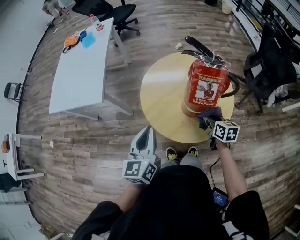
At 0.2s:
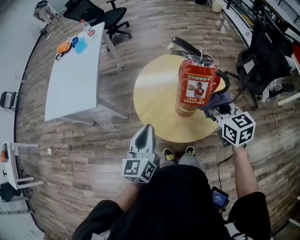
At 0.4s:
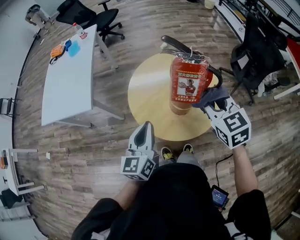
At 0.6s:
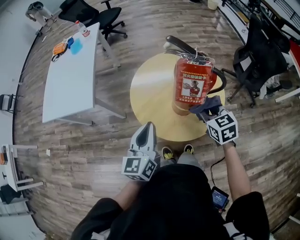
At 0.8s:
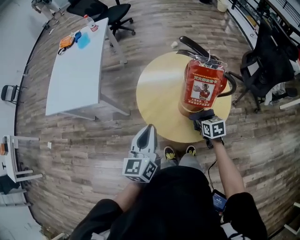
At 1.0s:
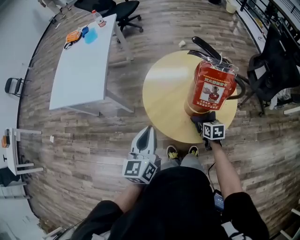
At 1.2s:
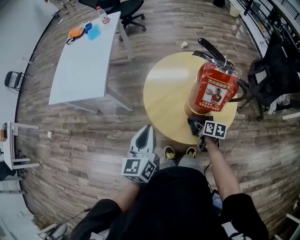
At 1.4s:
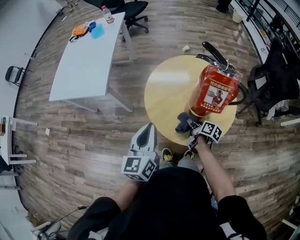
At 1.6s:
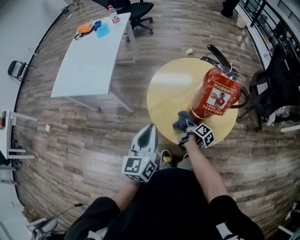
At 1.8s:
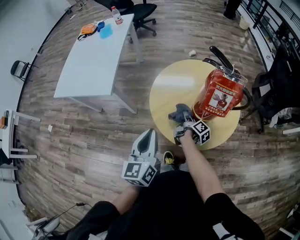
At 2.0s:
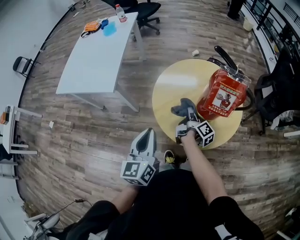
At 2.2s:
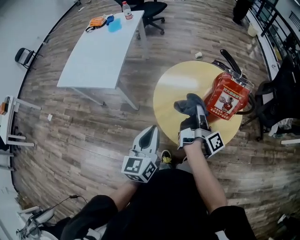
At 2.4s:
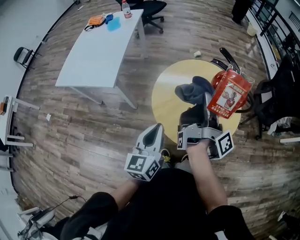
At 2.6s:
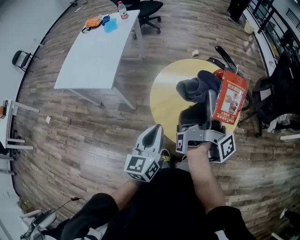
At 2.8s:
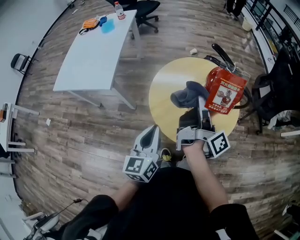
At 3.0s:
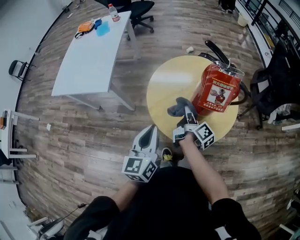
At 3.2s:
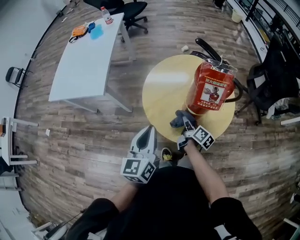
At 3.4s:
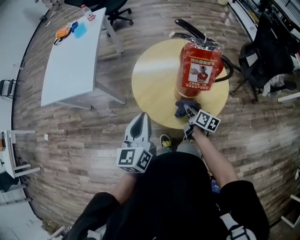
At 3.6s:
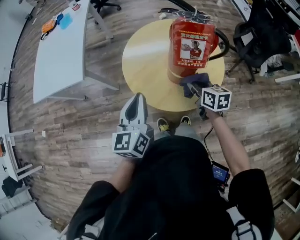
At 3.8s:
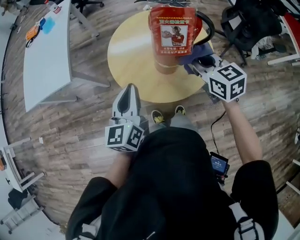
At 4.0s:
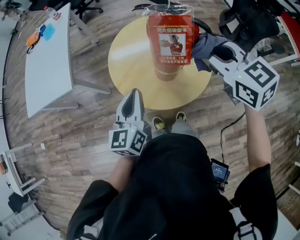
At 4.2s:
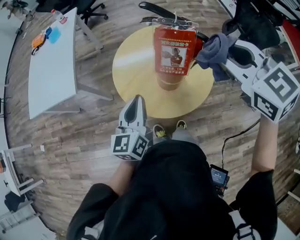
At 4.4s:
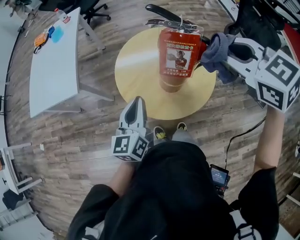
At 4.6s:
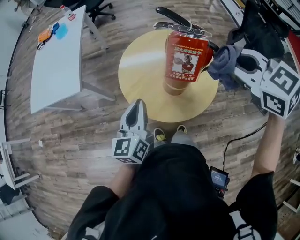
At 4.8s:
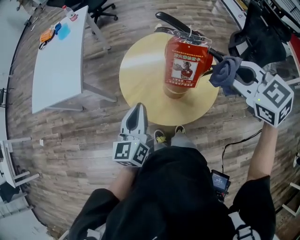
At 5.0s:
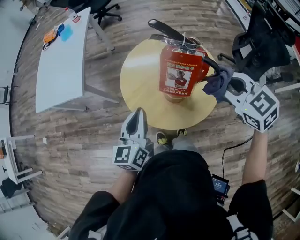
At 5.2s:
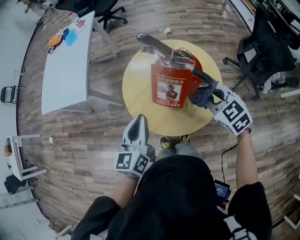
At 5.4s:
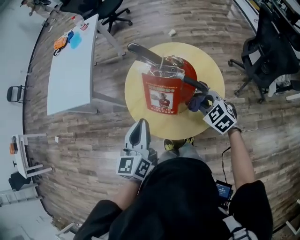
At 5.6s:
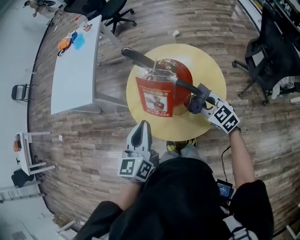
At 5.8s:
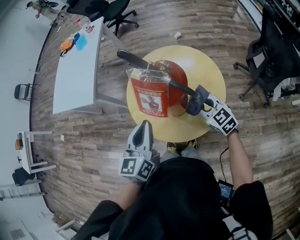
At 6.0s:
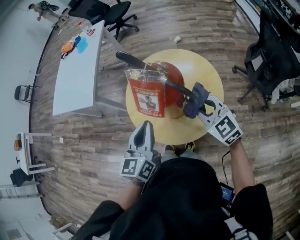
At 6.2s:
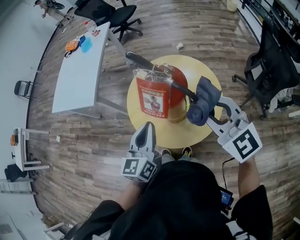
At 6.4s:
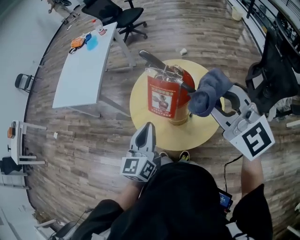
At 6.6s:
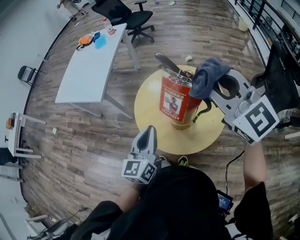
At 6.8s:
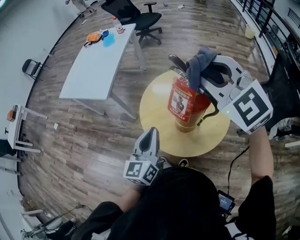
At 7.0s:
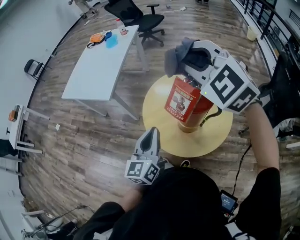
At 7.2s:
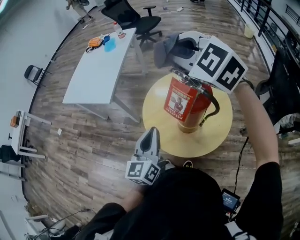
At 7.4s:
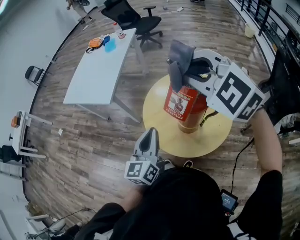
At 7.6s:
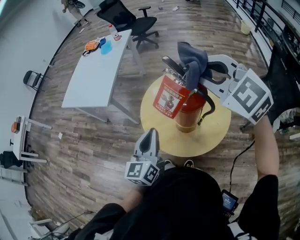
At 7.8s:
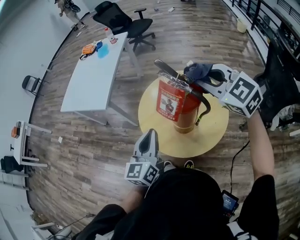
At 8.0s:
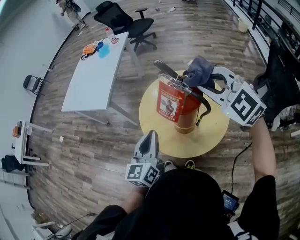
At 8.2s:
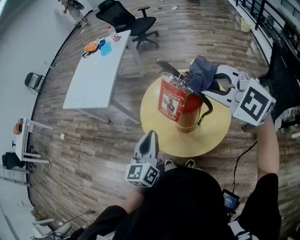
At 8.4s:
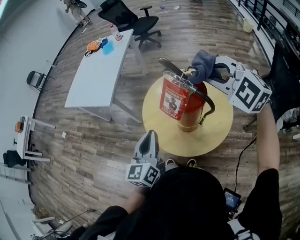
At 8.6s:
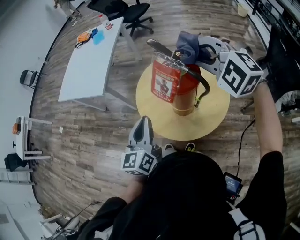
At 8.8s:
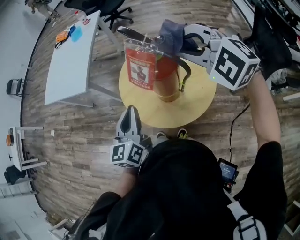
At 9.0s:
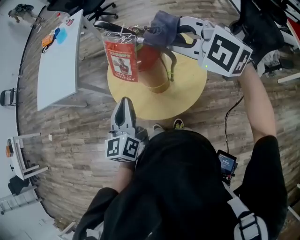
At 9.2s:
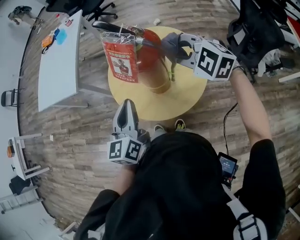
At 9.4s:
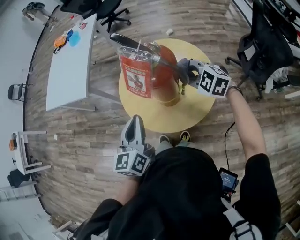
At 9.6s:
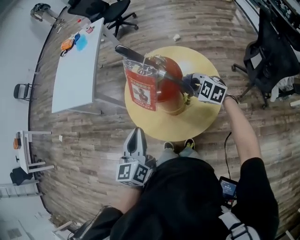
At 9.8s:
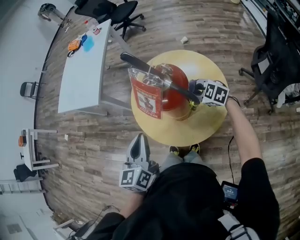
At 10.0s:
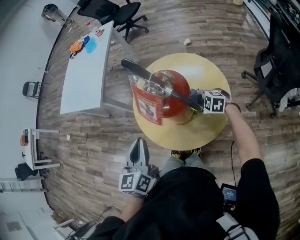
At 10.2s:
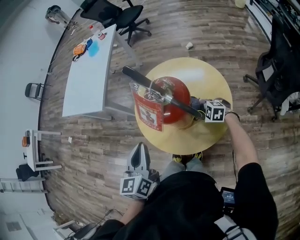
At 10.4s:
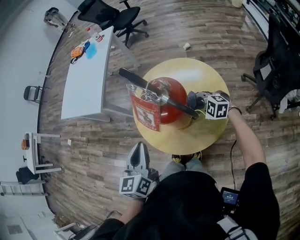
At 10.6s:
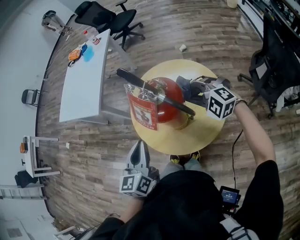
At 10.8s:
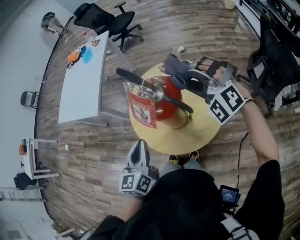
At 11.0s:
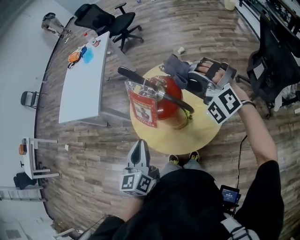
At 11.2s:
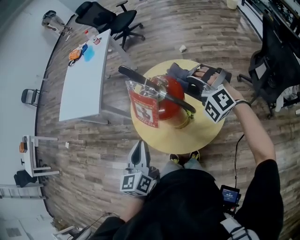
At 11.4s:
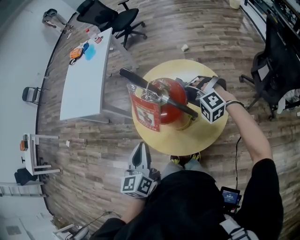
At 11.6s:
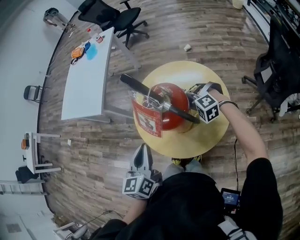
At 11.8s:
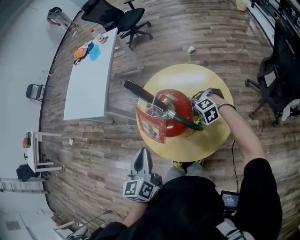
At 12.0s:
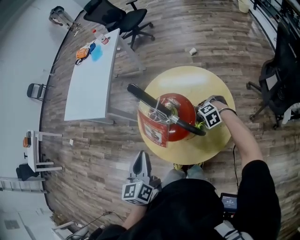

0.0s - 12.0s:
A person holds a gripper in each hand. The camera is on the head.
0.0s - 1.6s: The right gripper travels to the left by approximately 10 cm, reaches about 20 cm upward, then returns, and rotates around the line of its fingers by some 50 degrees, clockwise from behind.
1.6s - 3.0s: The right gripper shifts about 15 cm upward, and rotates some 20 degrees.
3.0s - 4.4s: The right gripper heads upward, covering some 30 cm, and twists about 90 degrees counterclockwise, seen from behind, while the left gripper moves to the right, about 5 cm.
4.4s - 6.0s: The left gripper travels to the right by some 10 cm; the right gripper travels downward by some 20 cm.
6.0s - 7.6s: The left gripper ends up approximately 5 cm from where it was. Meanwhile the right gripper shifts about 25 cm upward, and rotates approximately 20 degrees.
7.6s - 9.0s: The right gripper travels downward by about 10 cm.
9.0s - 10.4s: The right gripper moves downward, about 30 cm, and rotates roughly 20 degrees.
10.4s - 12.0s: The right gripper goes upward and returns, approximately 25 cm each way, and rotates some 30 degrees.

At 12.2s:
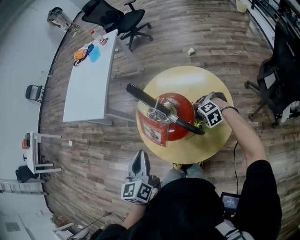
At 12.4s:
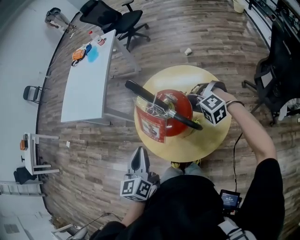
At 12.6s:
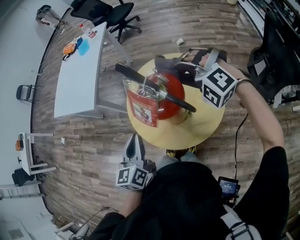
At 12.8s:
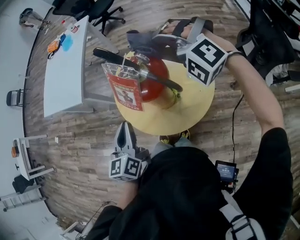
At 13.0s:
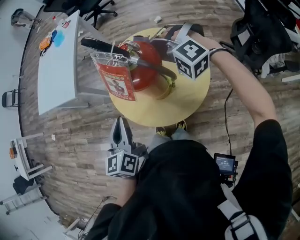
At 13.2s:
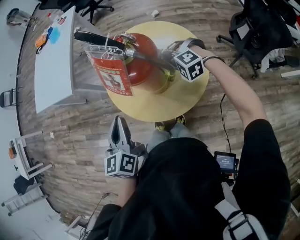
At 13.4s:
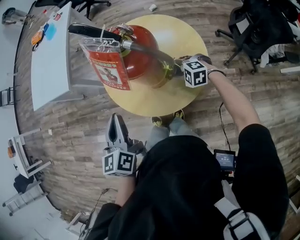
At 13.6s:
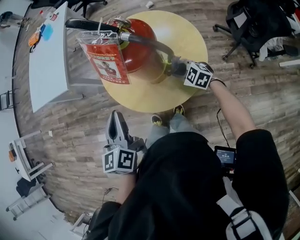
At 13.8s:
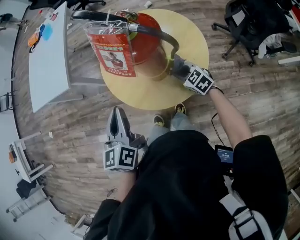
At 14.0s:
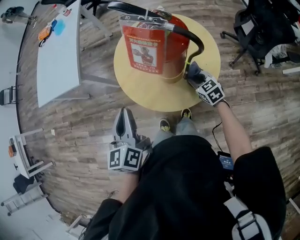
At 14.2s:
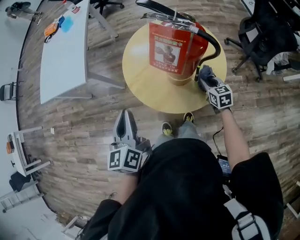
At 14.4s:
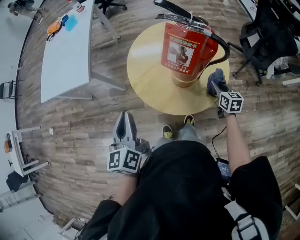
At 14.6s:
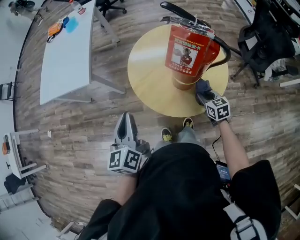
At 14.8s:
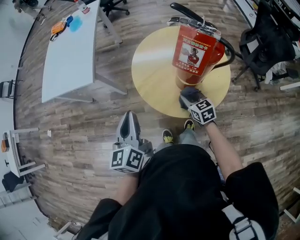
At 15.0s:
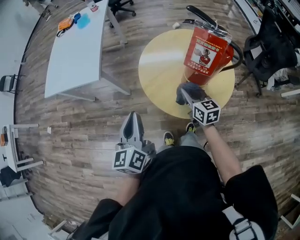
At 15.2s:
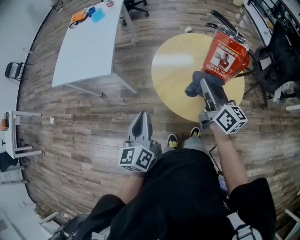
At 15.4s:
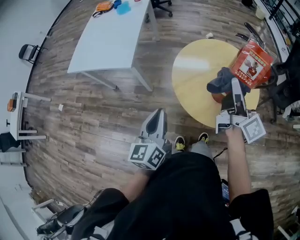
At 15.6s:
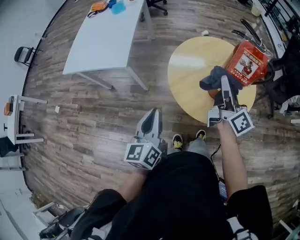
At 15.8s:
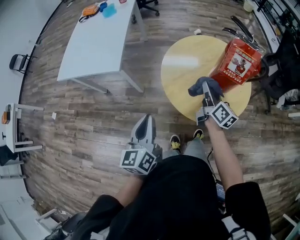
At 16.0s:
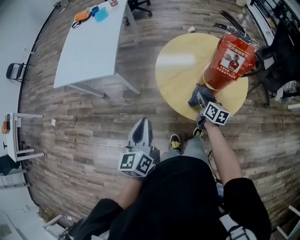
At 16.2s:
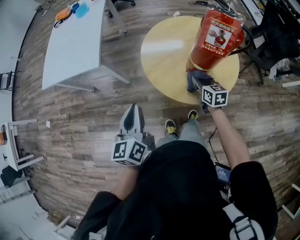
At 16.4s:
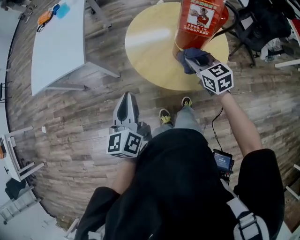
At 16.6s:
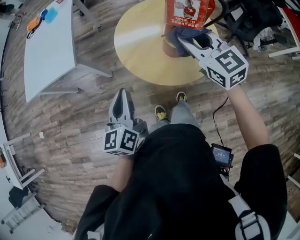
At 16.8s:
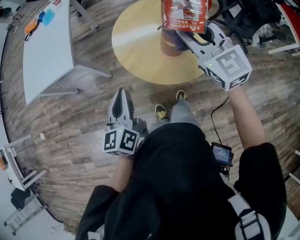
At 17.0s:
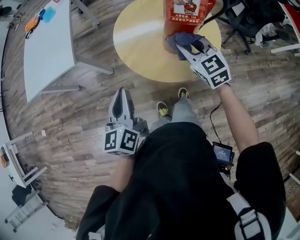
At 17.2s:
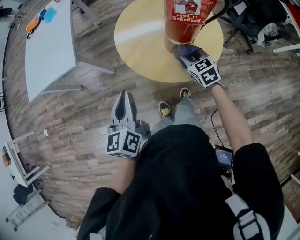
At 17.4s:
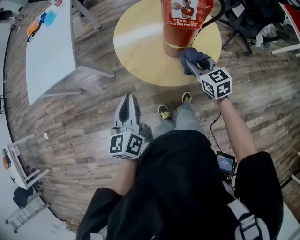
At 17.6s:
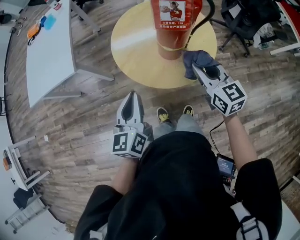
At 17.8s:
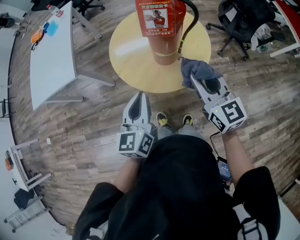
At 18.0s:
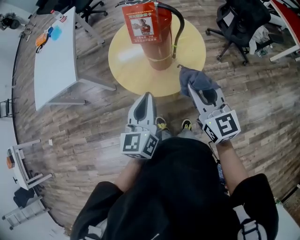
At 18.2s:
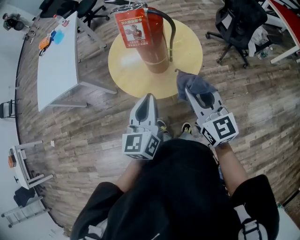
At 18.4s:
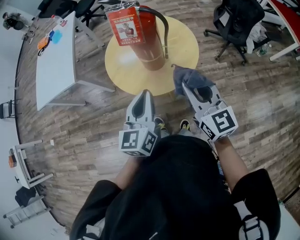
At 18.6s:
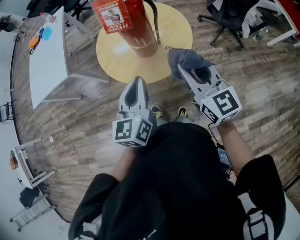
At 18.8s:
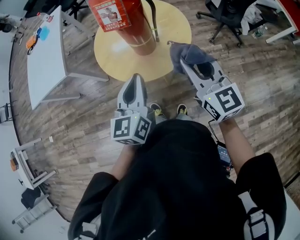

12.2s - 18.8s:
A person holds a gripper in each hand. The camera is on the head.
12.2s - 13.8s: The right gripper goes roughly 10 cm backward, reaches some 30 cm upward, then returns, and rotates around the line of its fingers by roughly 60 degrees, clockwise from behind.
13.8s - 15.4s: The right gripper goes approximately 35 cm upward and to the left, and tips its fingers upward by about 50 degrees, while the left gripper goes about 20 cm to the left.
15.4s - 17.2s: The left gripper changes place by approximately 5 cm. Meanwhile the right gripper goes up and down, roughly 30 cm each way, reversing 2 times, and angles its fingers downward, by roughly 50 degrees.
17.2s - 18.8s: The left gripper goes some 20 cm to the right; the right gripper heads upward, backward and to the right, covering roughly 30 cm, and points its fingers approximately 30 degrees further upward.

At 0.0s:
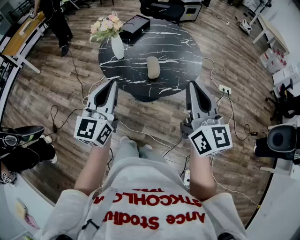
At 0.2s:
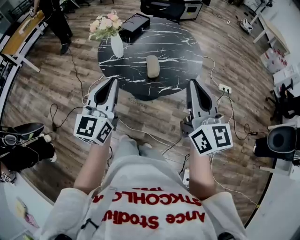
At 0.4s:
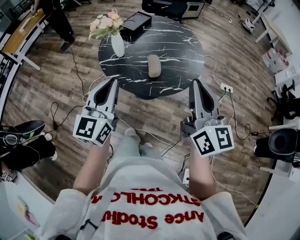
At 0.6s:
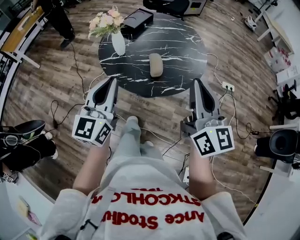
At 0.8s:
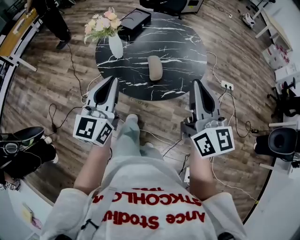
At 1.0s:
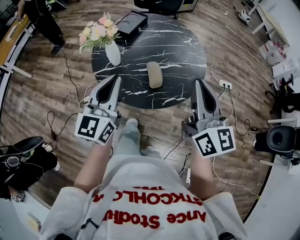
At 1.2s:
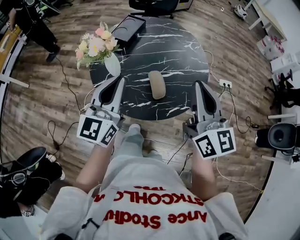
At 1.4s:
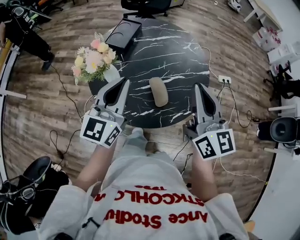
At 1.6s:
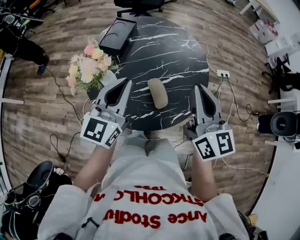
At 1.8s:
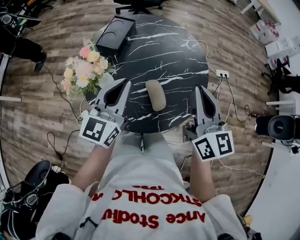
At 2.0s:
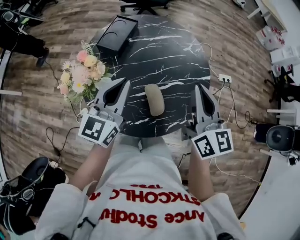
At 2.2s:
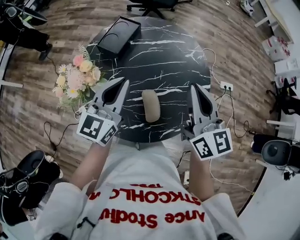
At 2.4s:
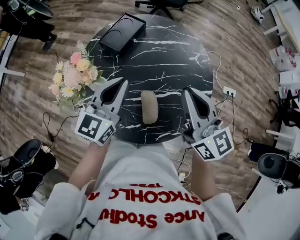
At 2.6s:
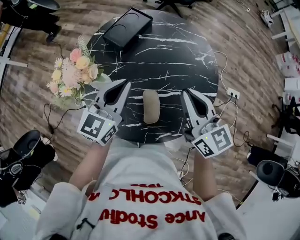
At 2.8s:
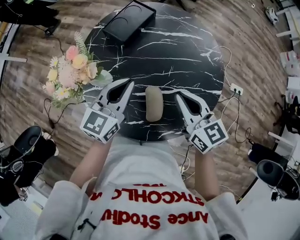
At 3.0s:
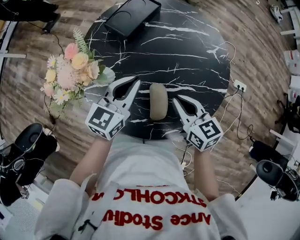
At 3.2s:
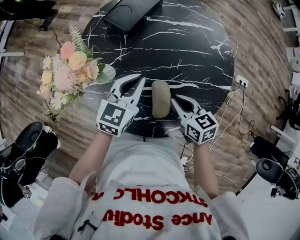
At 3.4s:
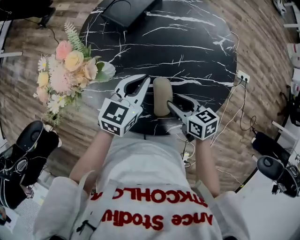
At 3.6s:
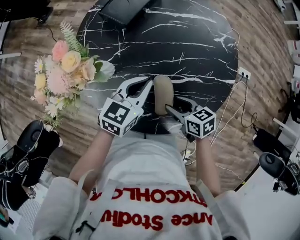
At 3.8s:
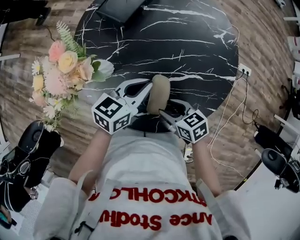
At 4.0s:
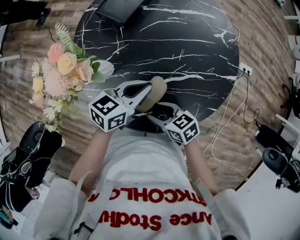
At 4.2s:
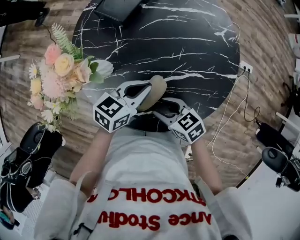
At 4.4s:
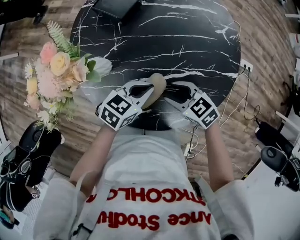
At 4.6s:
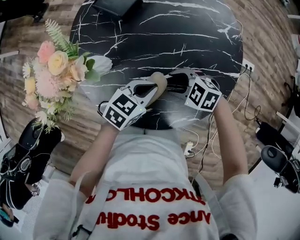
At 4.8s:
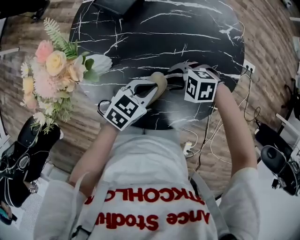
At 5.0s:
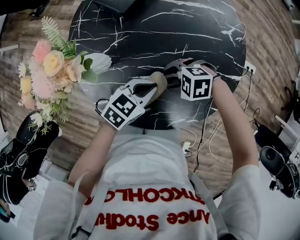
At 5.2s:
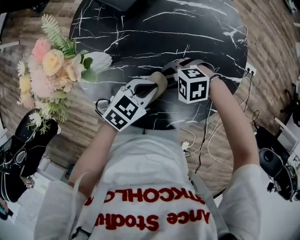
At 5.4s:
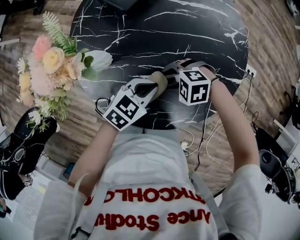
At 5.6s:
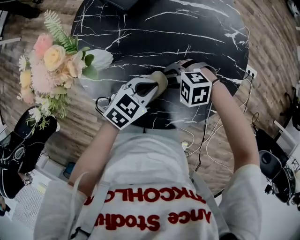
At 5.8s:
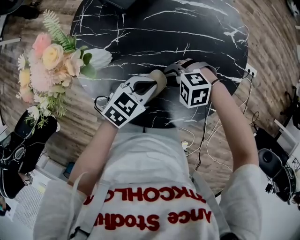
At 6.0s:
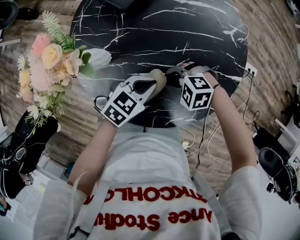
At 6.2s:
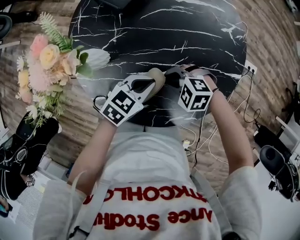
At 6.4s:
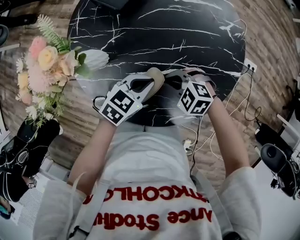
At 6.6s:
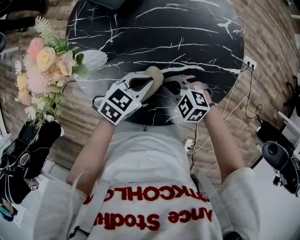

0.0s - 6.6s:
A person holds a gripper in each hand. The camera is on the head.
0.0s - 1.6s: Both grippers travel together forward, about 30 cm. The left gripper rotates roughly 20 degrees.
1.6s - 3.2s: The left gripper is displaced downward by approximately 20 cm, and turns by roughly 30 degrees; the right gripper heads downward, covering approximately 30 cm, and tilts its fingers about 40 degrees downward.
3.2s - 5.0s: The grippers both shift downward by approximately 10 cm. The left gripper changes its angle by some 30 degrees. The right gripper swivels some 80 degrees, and opens its fingers.
5.0s - 6.6s: The right gripper rotates about 30 degrees, and closes up.
